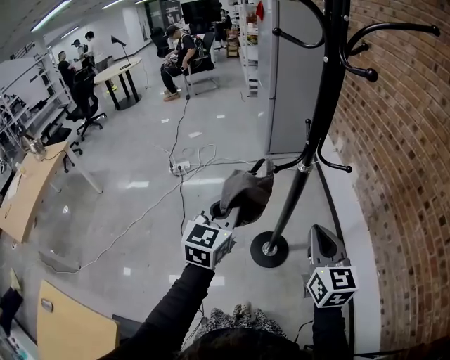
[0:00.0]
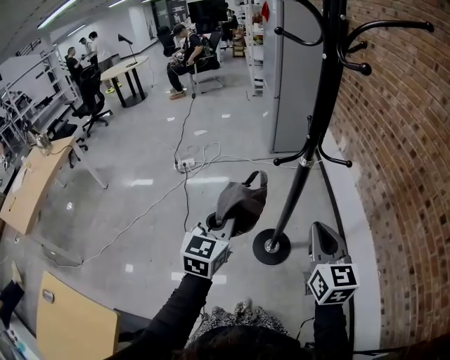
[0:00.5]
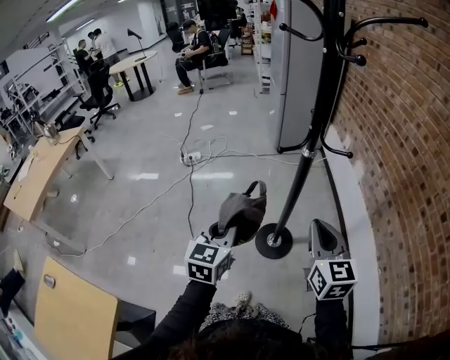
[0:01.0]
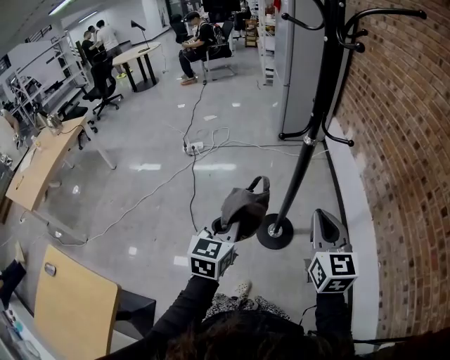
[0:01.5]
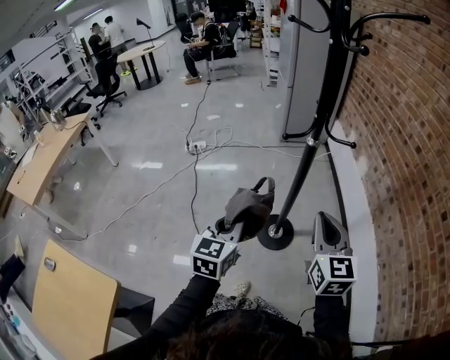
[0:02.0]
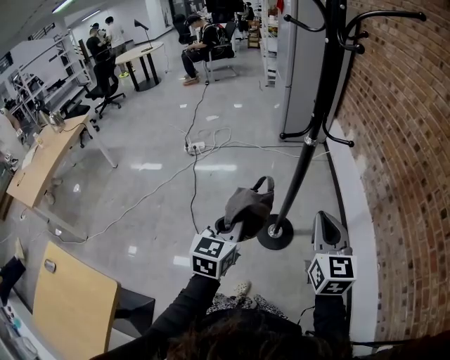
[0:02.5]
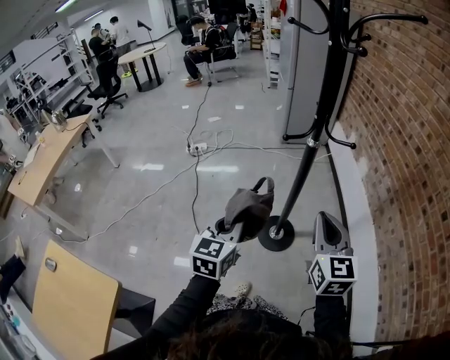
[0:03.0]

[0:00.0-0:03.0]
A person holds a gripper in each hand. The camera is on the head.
0:00.0 to 0:01.5: The left gripper shifts about 15 cm backward and downward. Meanwhile the right gripper is displaced backward by about 5 cm.
0:01.5 to 0:03.0: Both grippers stay about where they are.

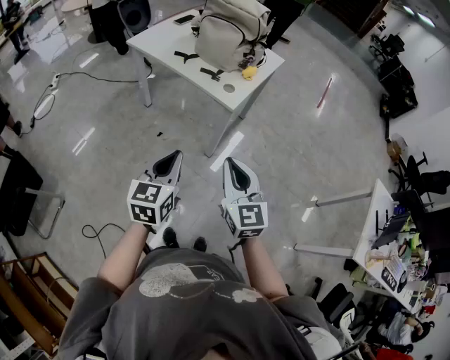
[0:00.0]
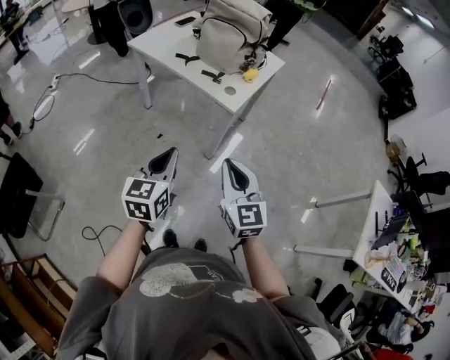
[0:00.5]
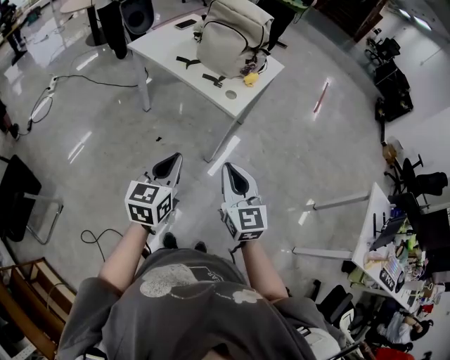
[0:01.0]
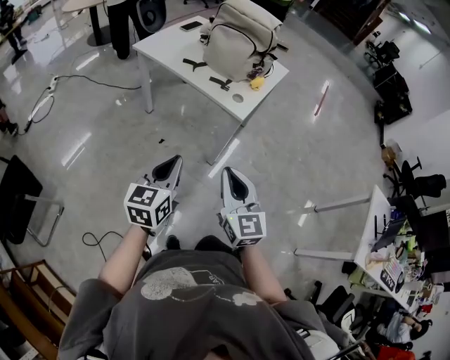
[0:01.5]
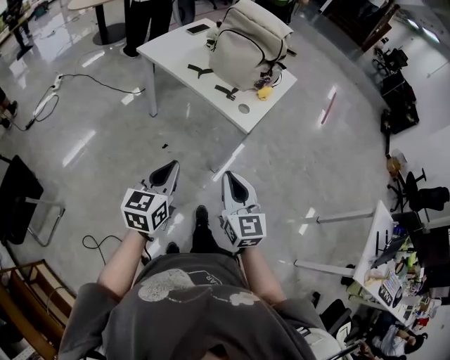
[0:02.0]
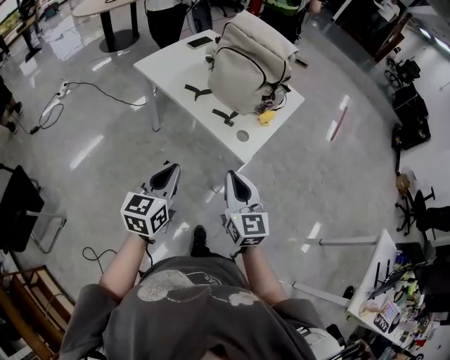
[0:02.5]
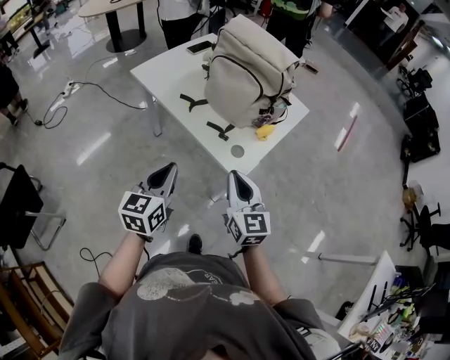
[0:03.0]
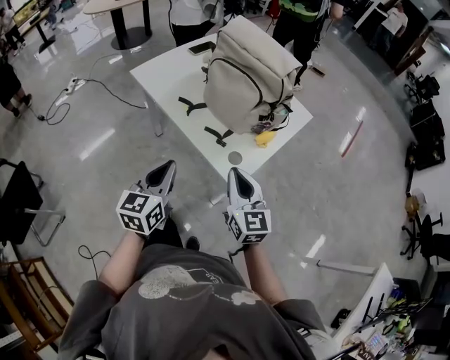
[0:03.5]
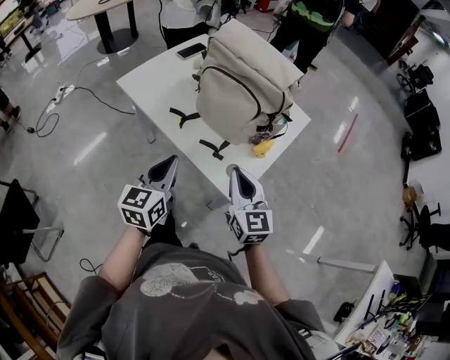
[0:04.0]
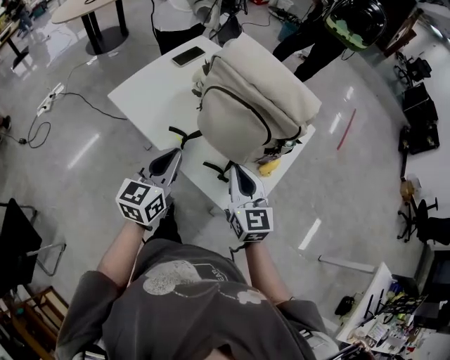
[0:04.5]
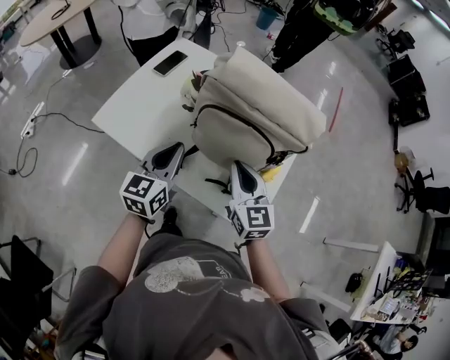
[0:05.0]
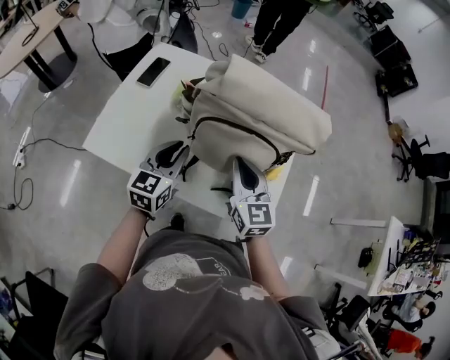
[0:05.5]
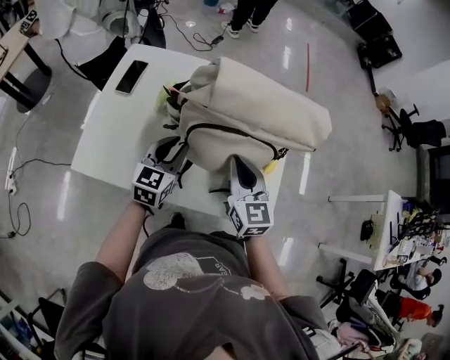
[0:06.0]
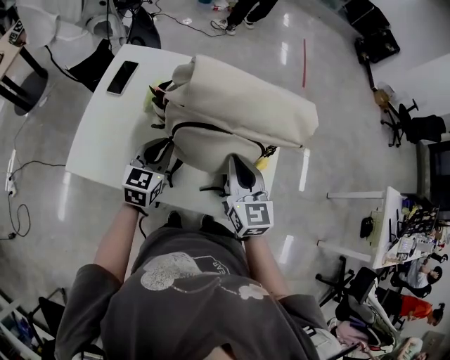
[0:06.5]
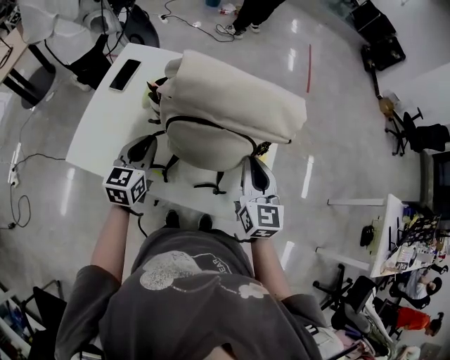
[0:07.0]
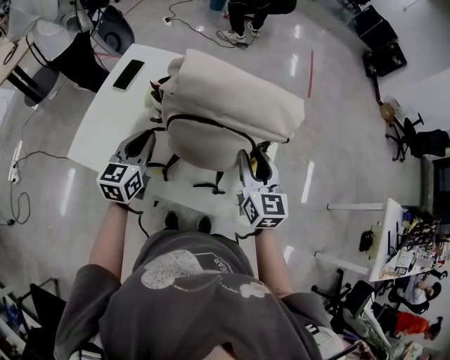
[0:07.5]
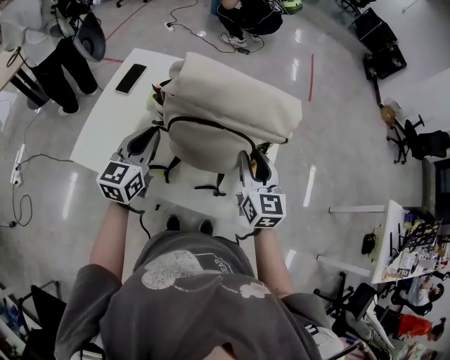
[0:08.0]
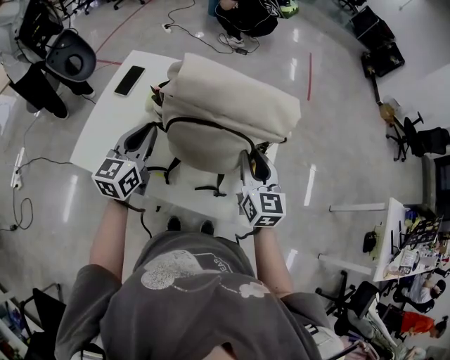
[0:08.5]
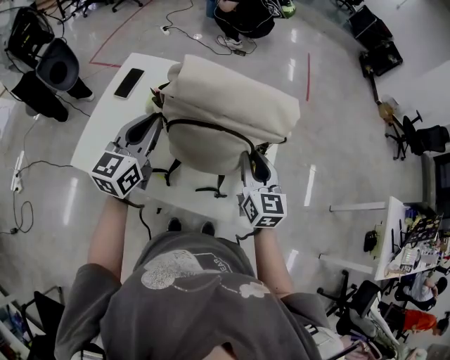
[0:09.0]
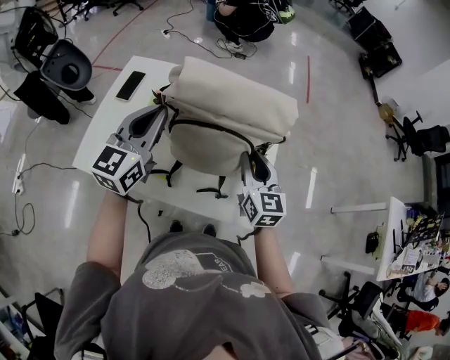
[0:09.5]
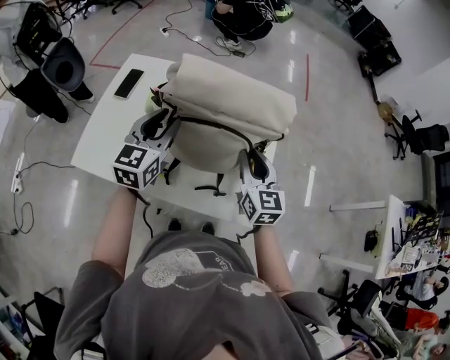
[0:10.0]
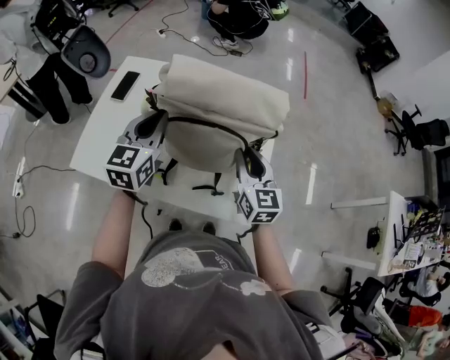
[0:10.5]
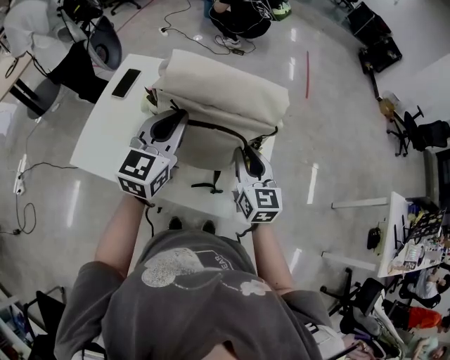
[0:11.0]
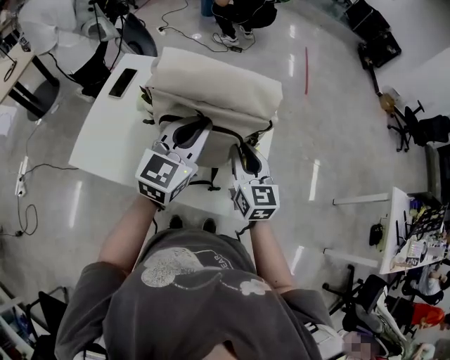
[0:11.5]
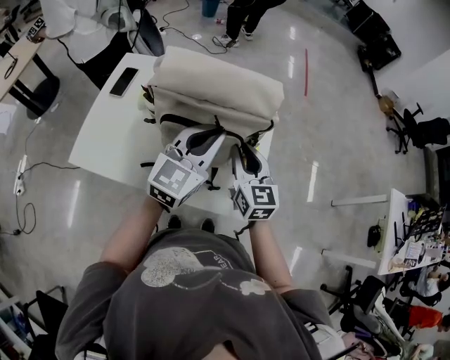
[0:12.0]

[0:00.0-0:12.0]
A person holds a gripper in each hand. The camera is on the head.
0:00.0 to 0:02.0: The left gripper heads to the left and forward, covering about 10 cm; the right gripper heads forward and to the left, covering some 10 cm.
0:02.0 to 0:04.0: The grippers both shift forward by about 35 cm.
0:04.0 to 0:06.0: The right gripper shifts by about 25 cm, and rotates approximately 30 degrees; the left gripper moves approximately 35 cm, turns by about 40 degrees, and opens.
0:06.0 to 0:08.0: The left gripper shifts some 10 cm upward. Meanwhile the right gripper is displaced to the right by roughly 10 cm, and opens its fingers.
0:08.0 to 0:10.0: The left gripper opens its fingers.
0:10.0 to 0:12.0: The left gripper moves to the right, about 15 cm, and closes its fingers.

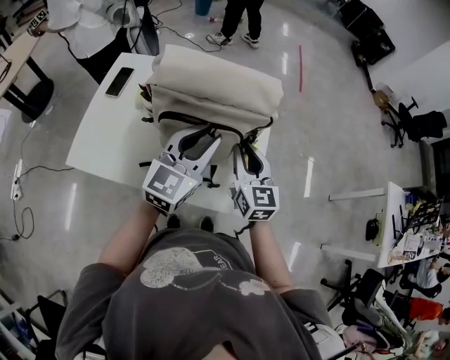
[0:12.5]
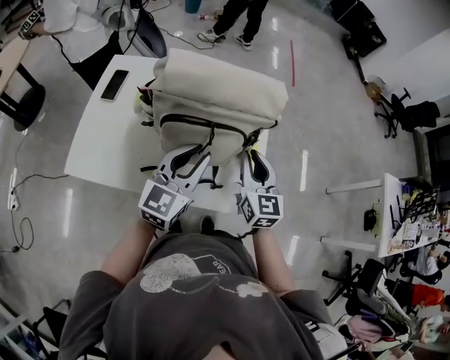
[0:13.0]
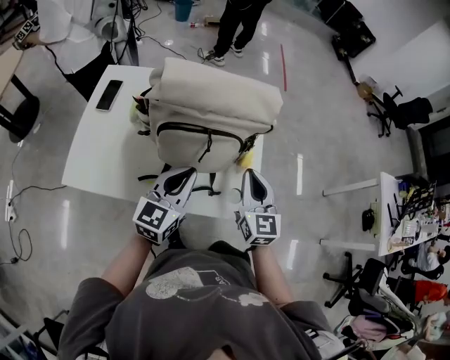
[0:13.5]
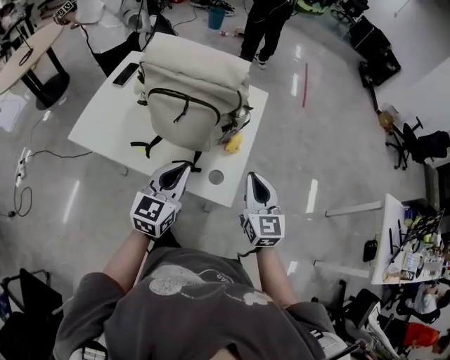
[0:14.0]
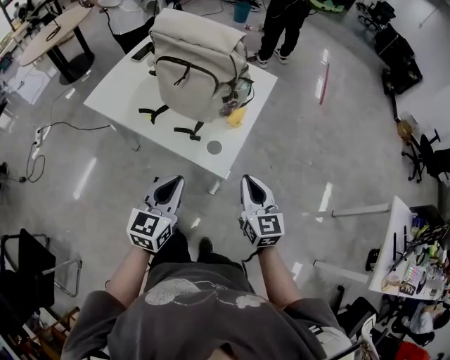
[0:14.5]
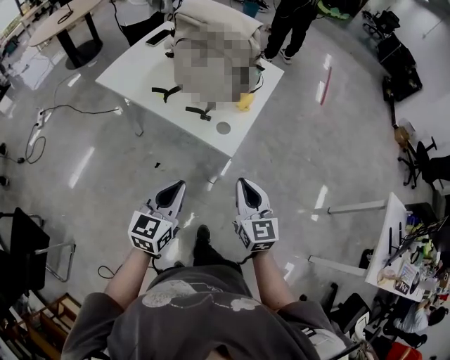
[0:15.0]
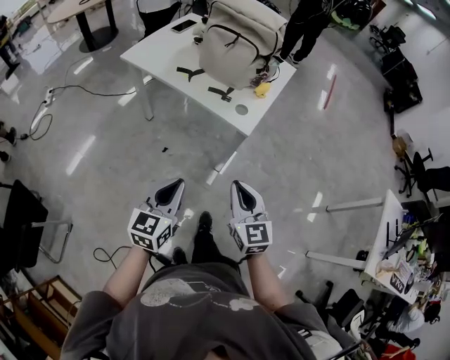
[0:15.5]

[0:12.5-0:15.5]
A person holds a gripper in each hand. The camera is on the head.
0:12.5 to 0:14.0: The left gripper moves backward, downward and to the right, some 15 cm, and closes. The right gripper goes some 15 cm to the right and backward.
0:14.0 to 0:15.5: Both grippers move backward, some 40 cm.

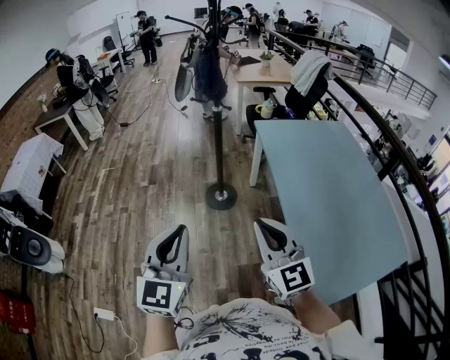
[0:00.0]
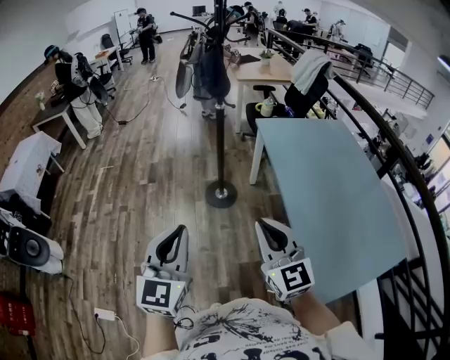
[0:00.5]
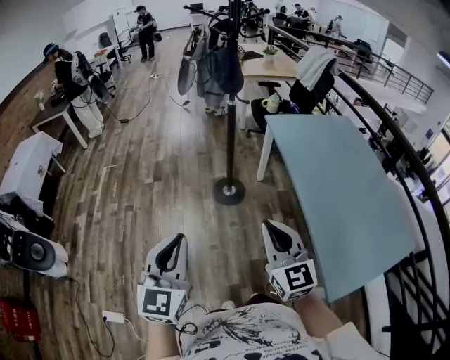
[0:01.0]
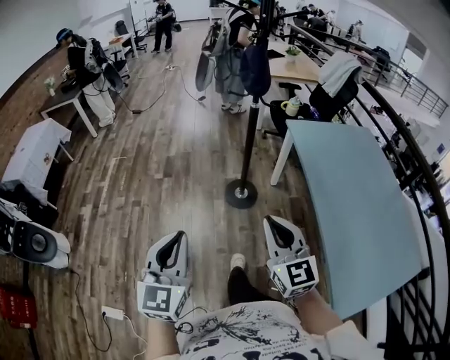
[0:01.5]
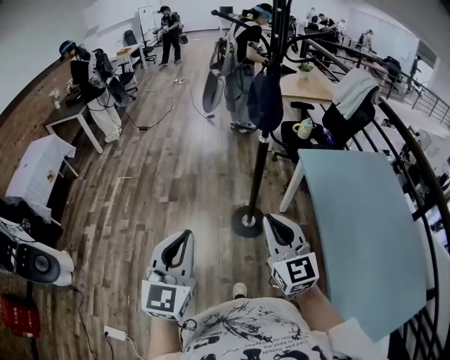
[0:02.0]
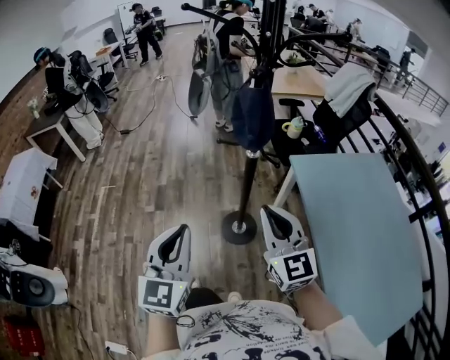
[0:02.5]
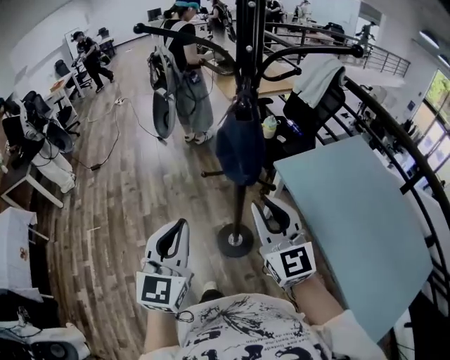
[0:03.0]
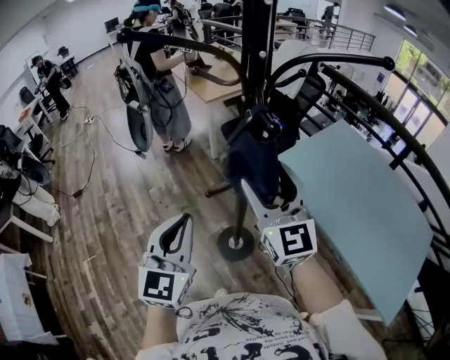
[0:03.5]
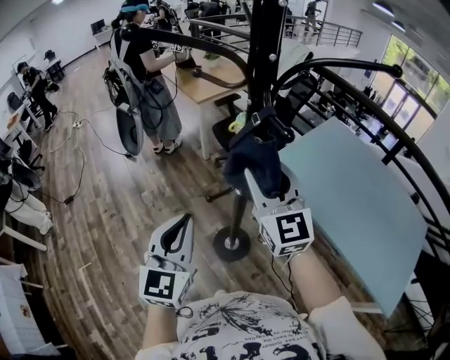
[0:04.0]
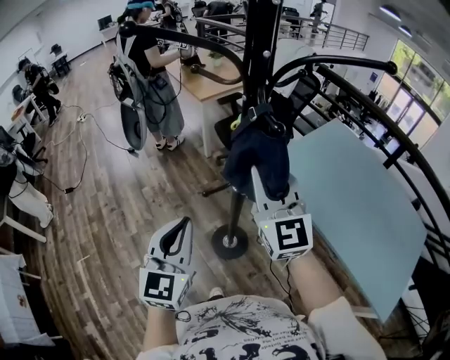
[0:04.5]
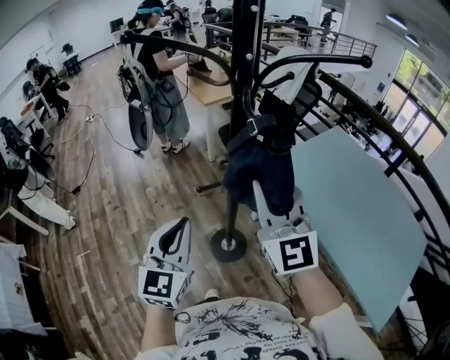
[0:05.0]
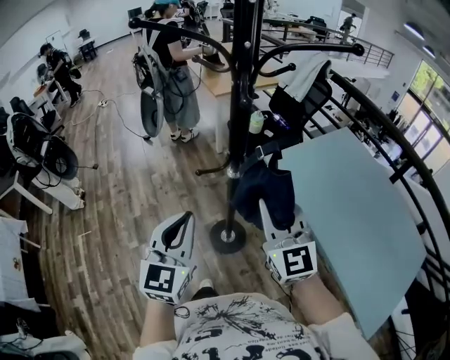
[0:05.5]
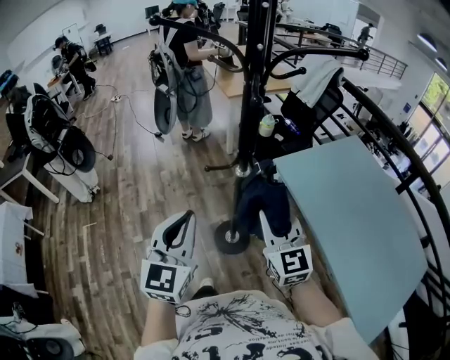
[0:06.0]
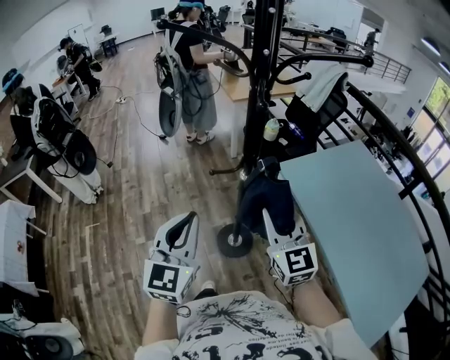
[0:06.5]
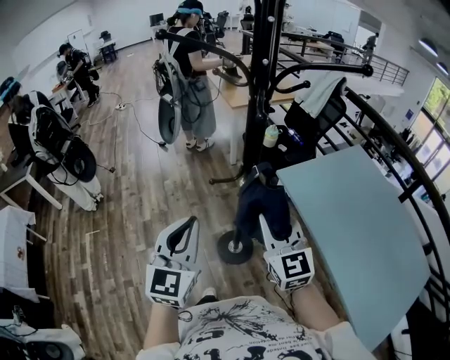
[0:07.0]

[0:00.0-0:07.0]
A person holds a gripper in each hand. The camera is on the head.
0:00.0 to 0:02.0: The left gripper is displaced forward and to the left by some 30 cm, while the right gripper moves forward, roughly 35 cm.
0:02.0 to 0:03.5: The left gripper changes place by some 50 cm, and swivels some 30 degrees. The right gripper ends up about 40 cm from where it was, turns by roughly 30 degrees, and opens up.
0:03.5 to 0:05.0: The right gripper moves backward, roughly 5 cm, and closes up.
0:05.0 to 0:07.0: The left gripper heads backward, covering approximately 5 cm. The right gripper moves downward, roughly 10 cm.

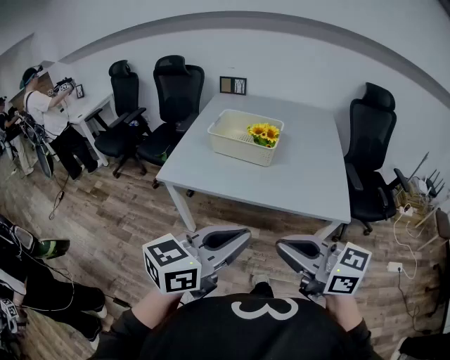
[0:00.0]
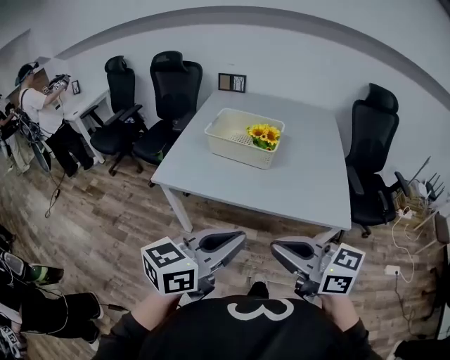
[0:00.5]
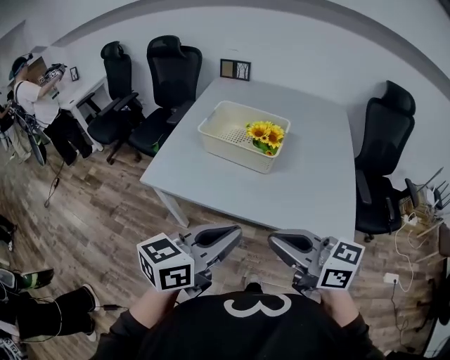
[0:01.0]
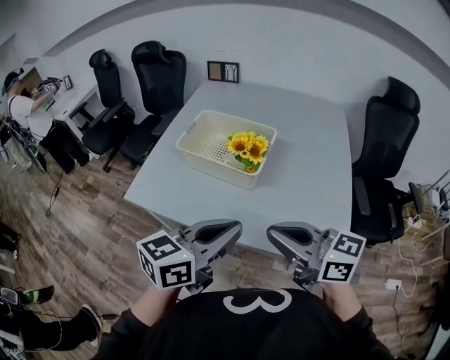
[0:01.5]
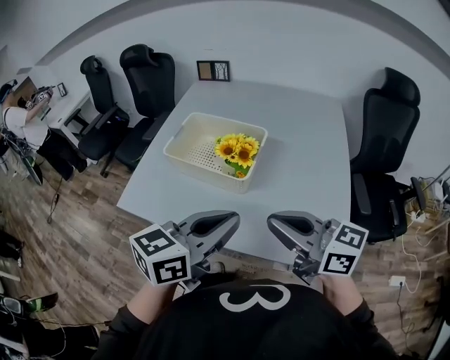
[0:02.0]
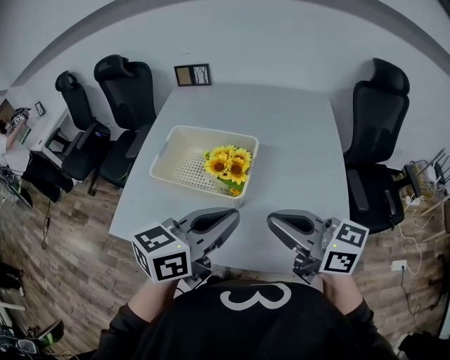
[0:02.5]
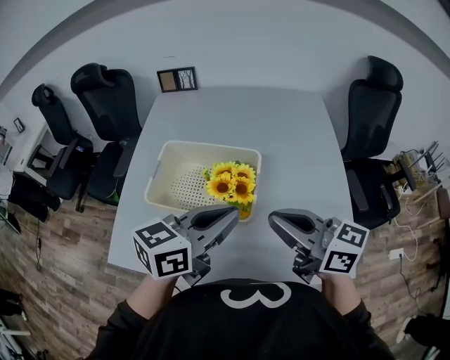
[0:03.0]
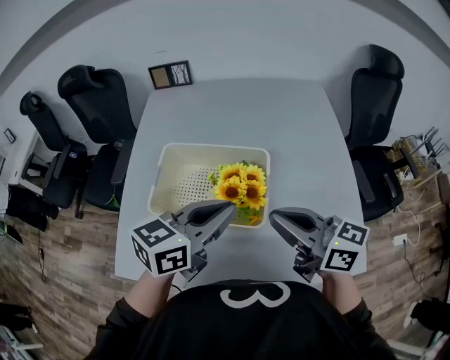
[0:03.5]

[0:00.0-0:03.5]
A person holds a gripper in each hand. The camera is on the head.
0:00.0 to 0:02.0: Both grippers travel together forward and to the right, some 35 cm.
0:02.0 to 0:03.5: The grippers both shift forward by about 20 cm.
